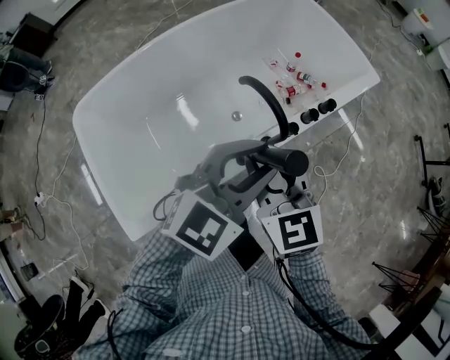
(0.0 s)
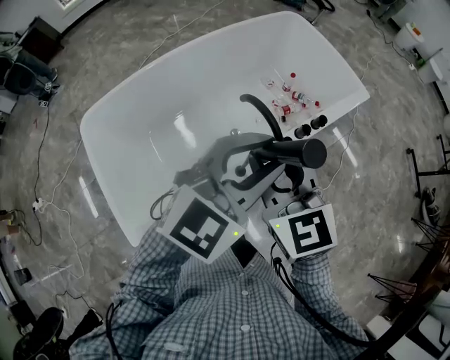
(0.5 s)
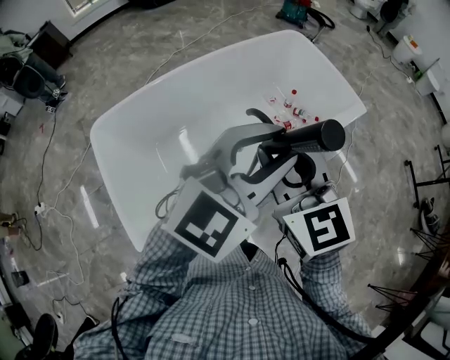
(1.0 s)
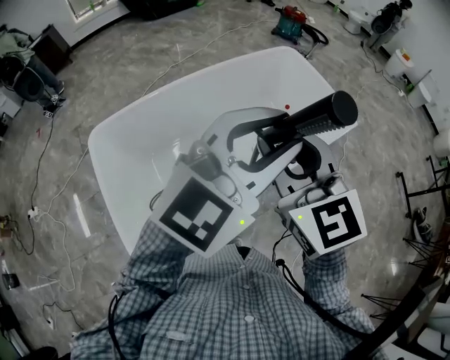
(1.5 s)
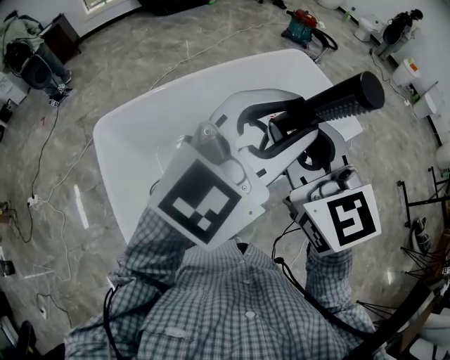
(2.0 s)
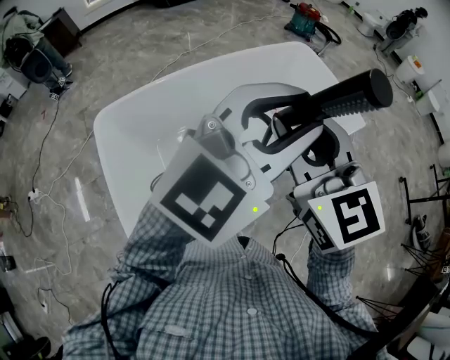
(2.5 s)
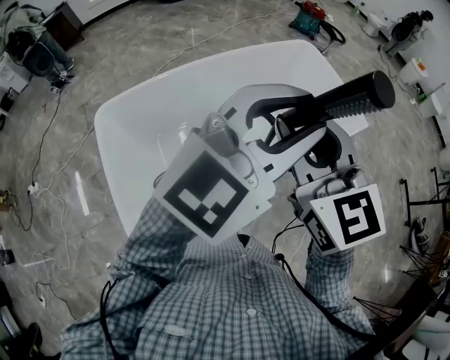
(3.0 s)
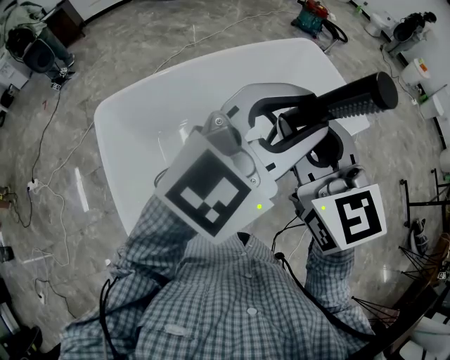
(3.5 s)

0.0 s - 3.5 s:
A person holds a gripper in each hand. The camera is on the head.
0.0 s - 2.0 s: The two grippers go approximately 25 cm upward. The left gripper changes its angle by roughly 20 degrees.
2.0 s - 3.5 s: The grippers stay close to where they were, moving slightly.

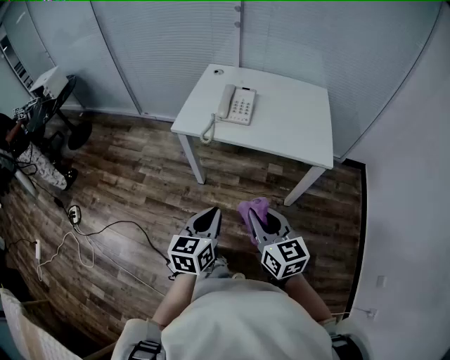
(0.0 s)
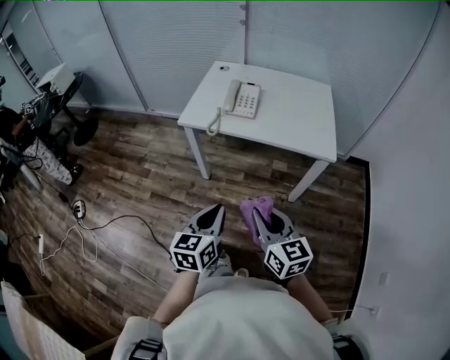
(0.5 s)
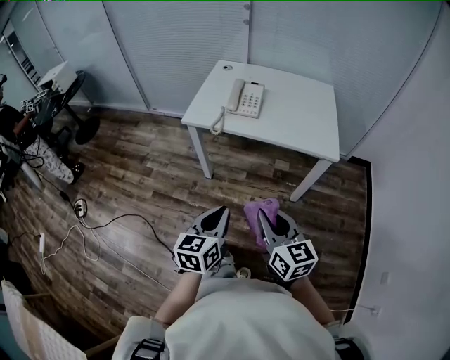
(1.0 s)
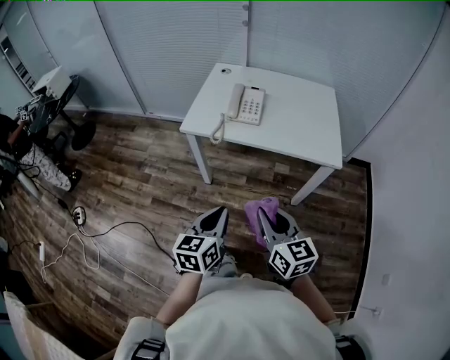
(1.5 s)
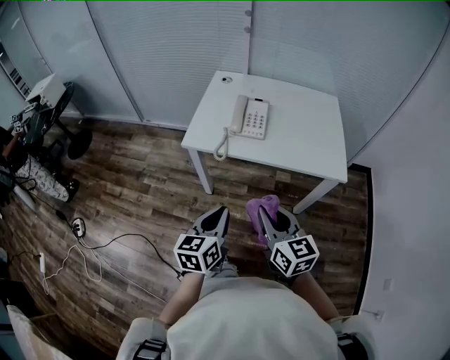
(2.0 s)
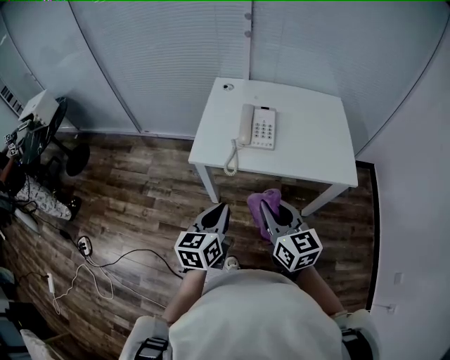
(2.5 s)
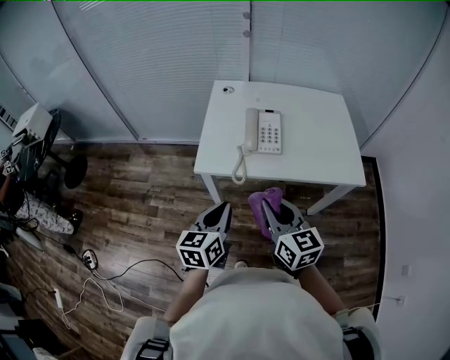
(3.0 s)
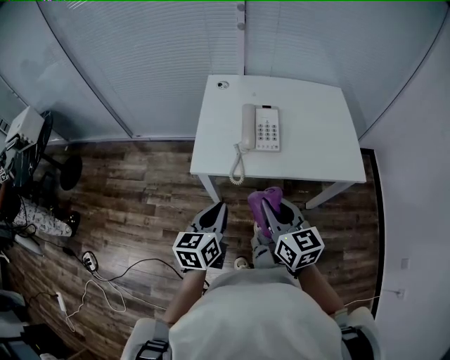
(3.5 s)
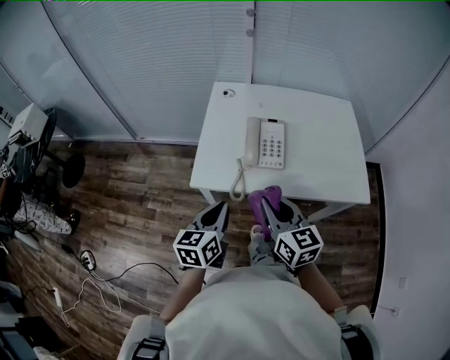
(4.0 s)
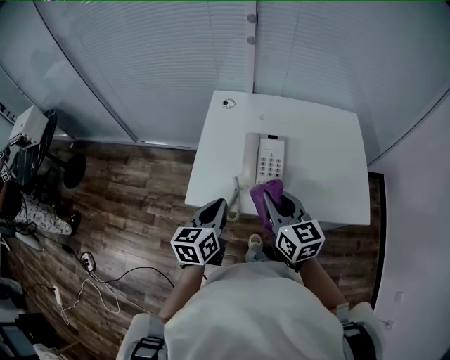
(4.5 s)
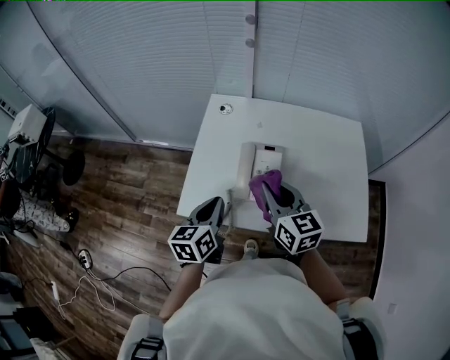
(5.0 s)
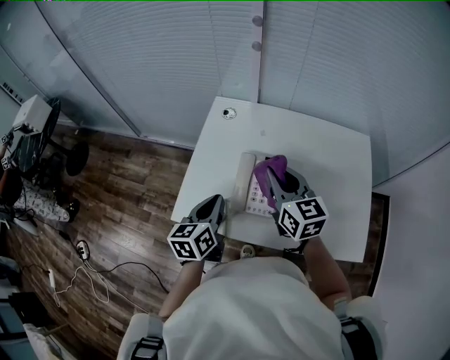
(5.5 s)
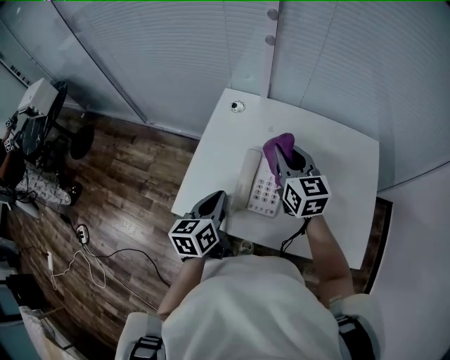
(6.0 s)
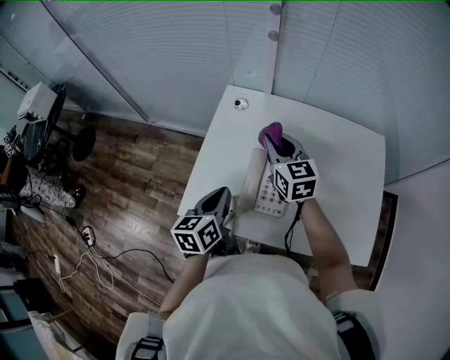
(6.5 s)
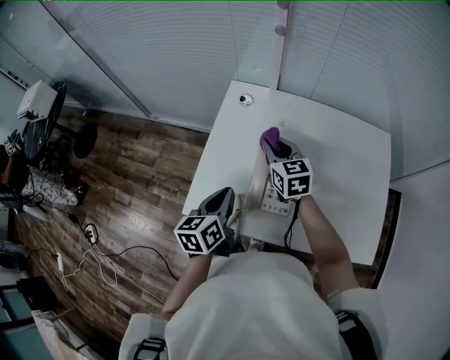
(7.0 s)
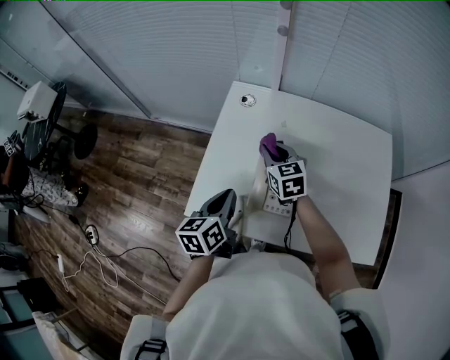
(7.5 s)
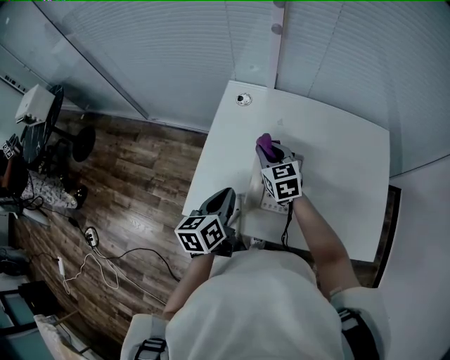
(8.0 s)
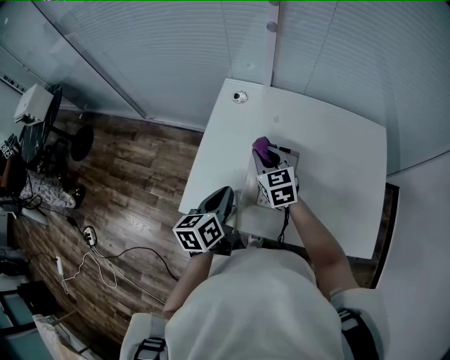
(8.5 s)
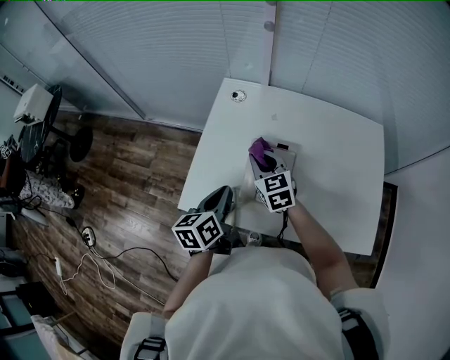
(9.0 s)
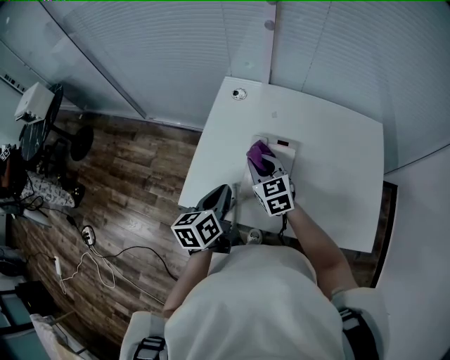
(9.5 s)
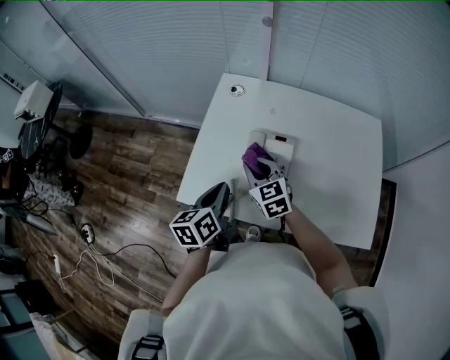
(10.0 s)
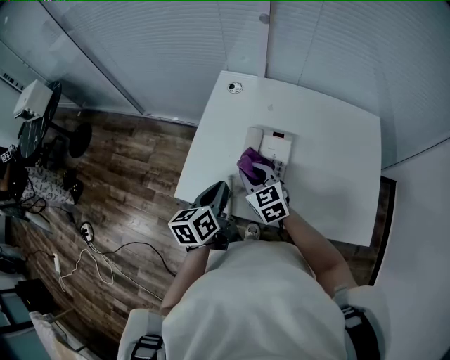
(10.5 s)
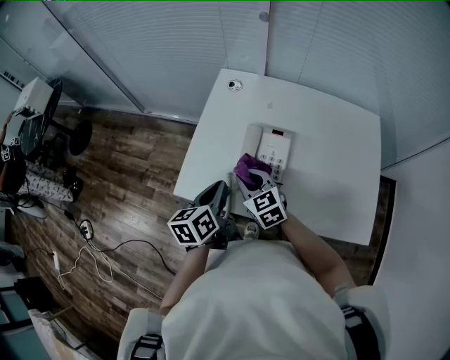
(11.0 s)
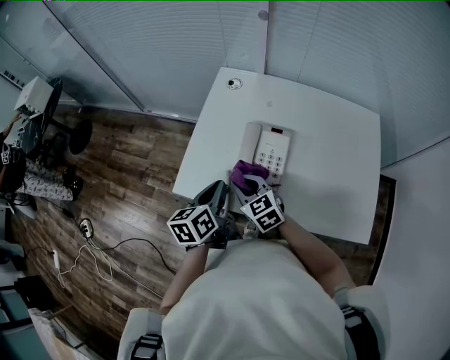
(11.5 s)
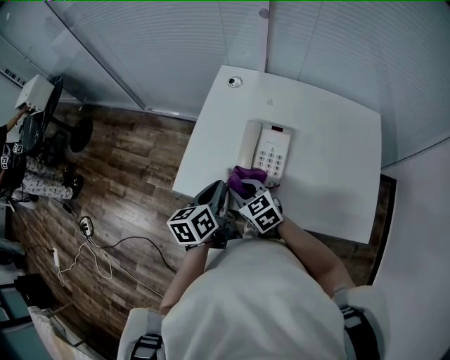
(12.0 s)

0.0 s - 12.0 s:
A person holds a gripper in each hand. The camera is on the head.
0.0 s - 2.0 s: Both grippers travel together forward, some 10 cm.
2.0 s - 4.0 s: The right gripper shifts some 20 cm forward; the left gripper travels forward and to the left by approximately 25 cm.
4.0 s - 6.0 s: The right gripper heads forward, covering roughly 35 cm. The left gripper goes roughly 20 cm forward.
6.0 s - 8.0 s: The right gripper goes roughly 15 cm downward and to the left.
8.0 s - 10.0 s: The right gripper travels backward by about 10 cm.
10.0 s - 12.0 s: The right gripper heads backward and to the left, covering about 10 cm.

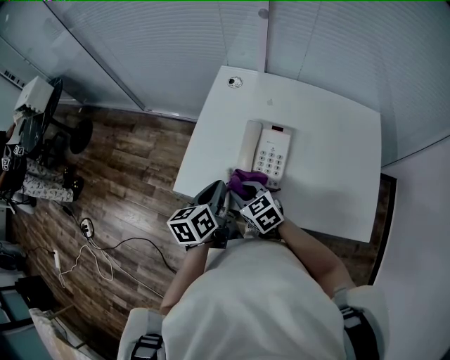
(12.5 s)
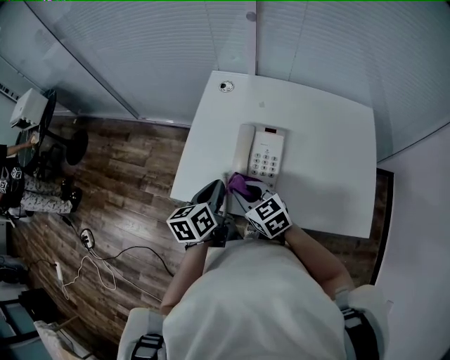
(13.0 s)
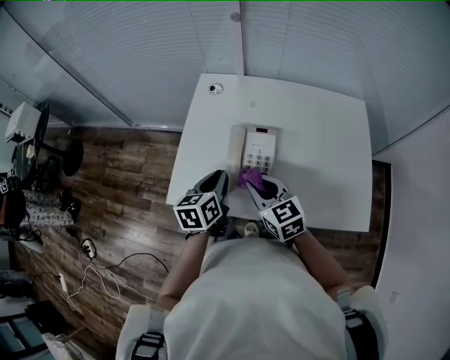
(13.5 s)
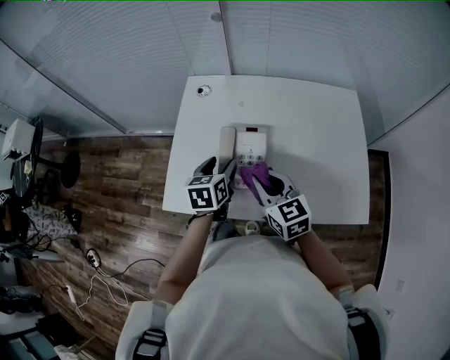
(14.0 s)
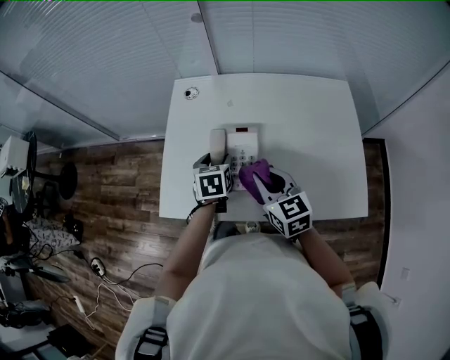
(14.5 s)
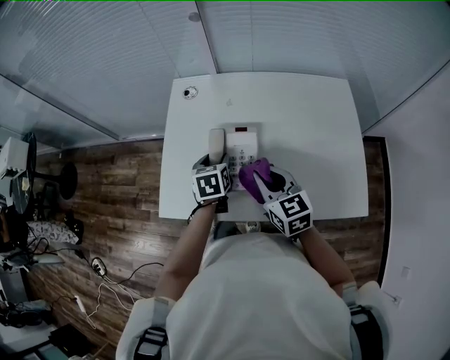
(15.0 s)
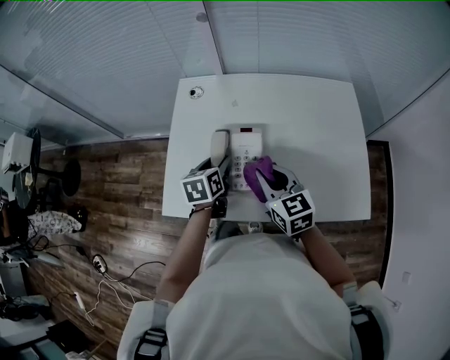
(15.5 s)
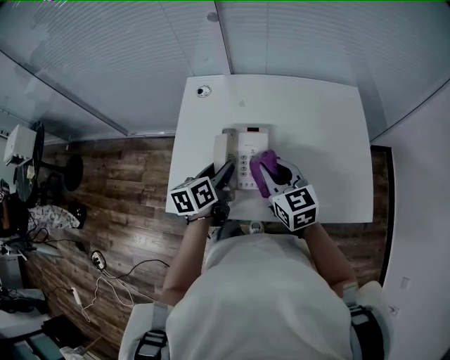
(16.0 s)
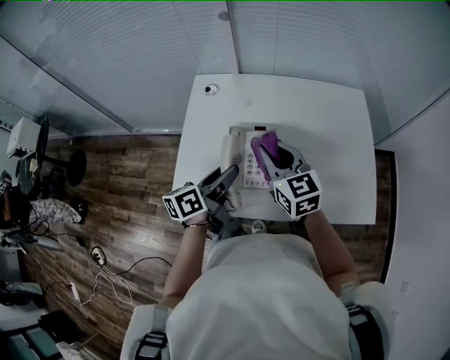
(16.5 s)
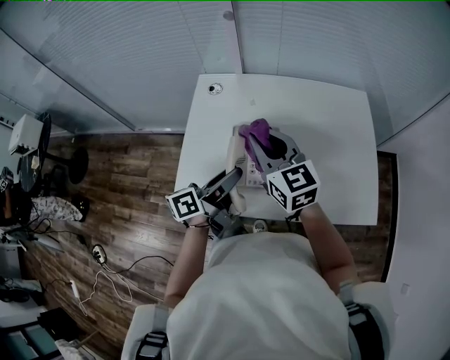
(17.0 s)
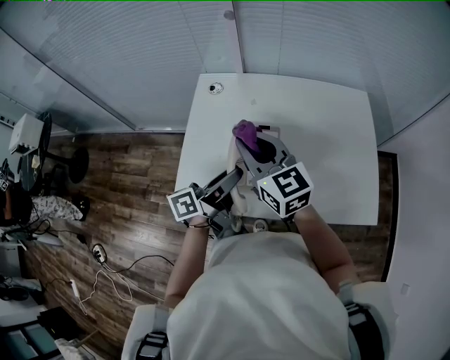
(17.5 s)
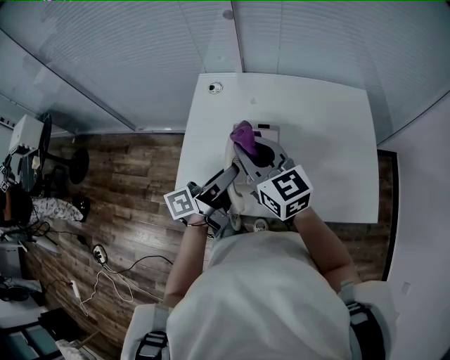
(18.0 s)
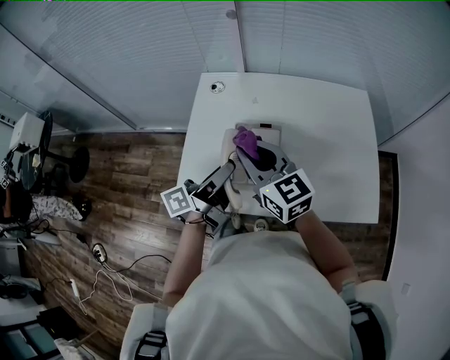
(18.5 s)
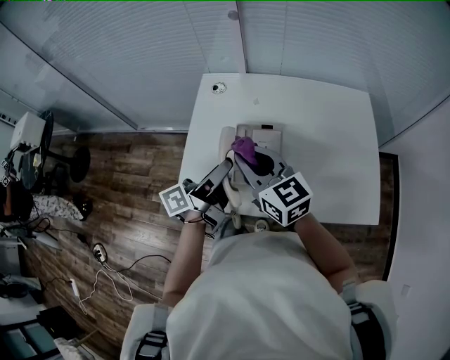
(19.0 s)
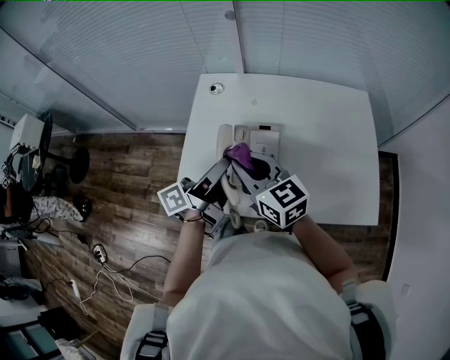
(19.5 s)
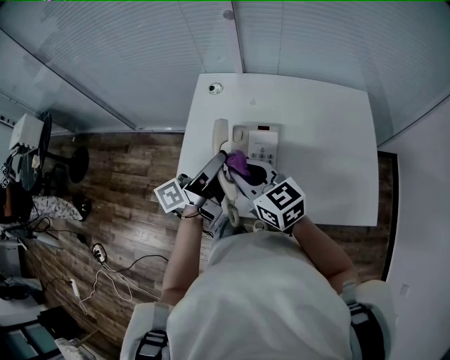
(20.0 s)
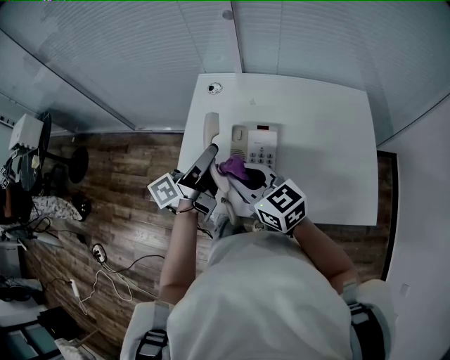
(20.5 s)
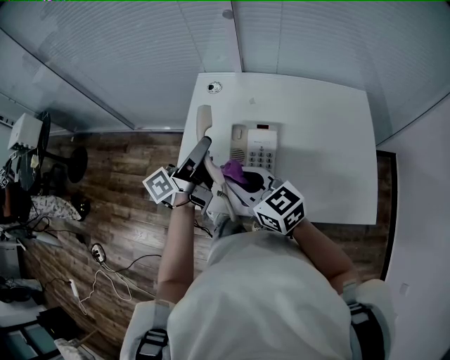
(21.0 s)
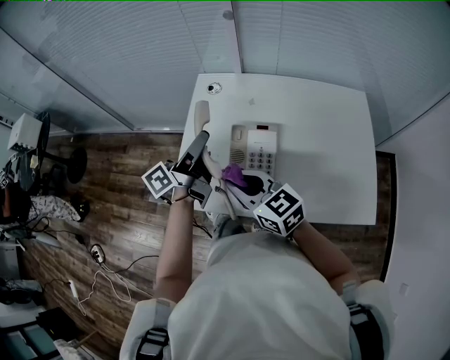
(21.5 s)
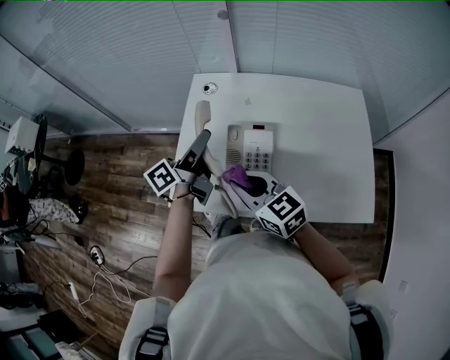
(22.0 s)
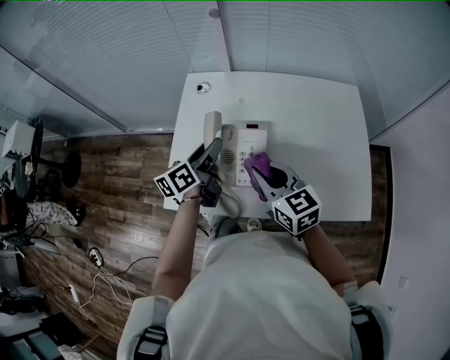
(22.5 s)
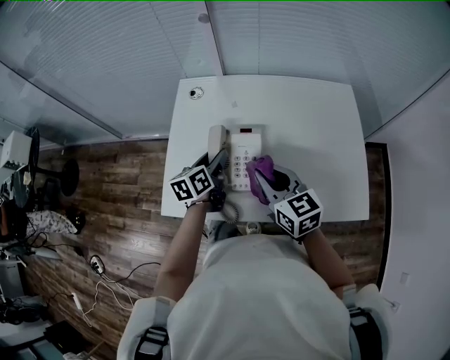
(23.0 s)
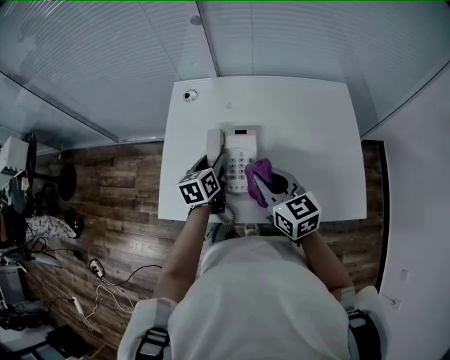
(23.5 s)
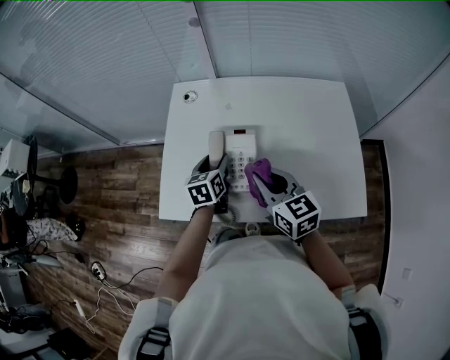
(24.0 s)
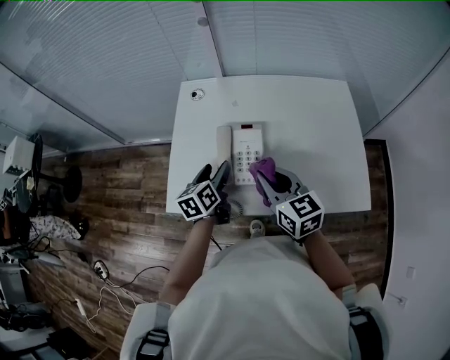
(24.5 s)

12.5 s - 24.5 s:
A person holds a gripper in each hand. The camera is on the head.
12.5 s - 14.5 s: The left gripper travels forward, to the right and downward by about 15 cm, rotates about 40 degrees, and opens its fingers, while the right gripper travels to the right and upward by about 20 cm, and rotates some 30 degrees.
14.5 s - 16.5 s: The right gripper travels upward and forward by about 10 cm, while the left gripper goes about 10 cm upward and backward, and tilts its fingers some 30 degrees upward.
16.5 s - 18.5 s: The right gripper travels to the left by about 5 cm; the left gripper changes place by some 5 cm, and turns by about 30 degrees.
18.5 s - 20.5 s: The right gripper shifts by approximately 5 cm, while the left gripper changes place by some 5 cm.
20.5 s - 22.5 s: The right gripper shifts about 10 cm to the right. The left gripper is displaced downward by some 5 cm, and turns by roughly 30 degrees.
22.5 s - 24.5 s: The left gripper is displaced backward and downward by some 10 cm.
